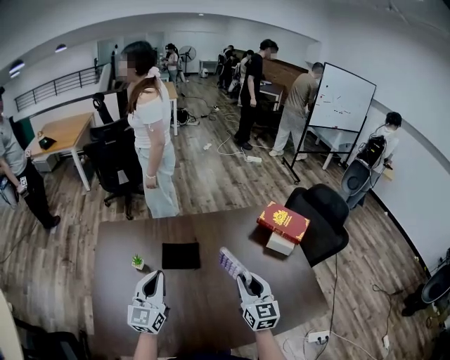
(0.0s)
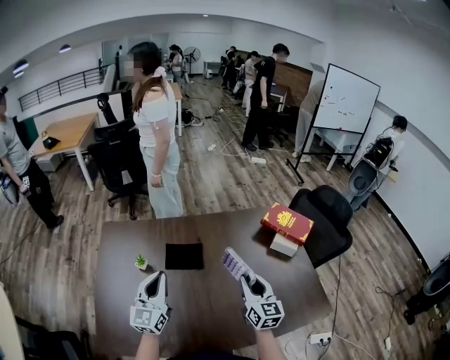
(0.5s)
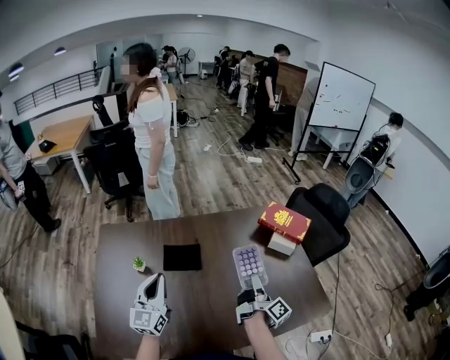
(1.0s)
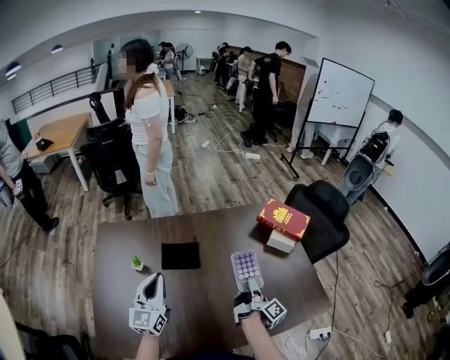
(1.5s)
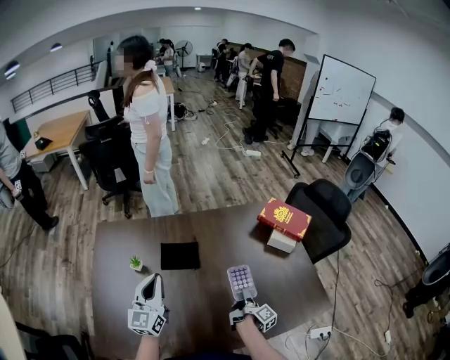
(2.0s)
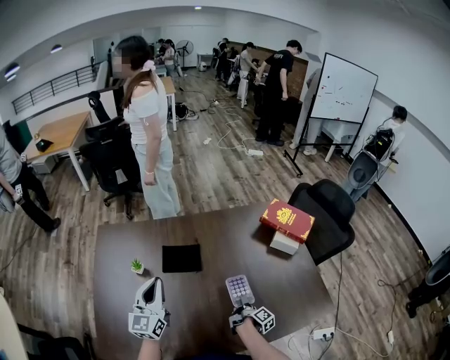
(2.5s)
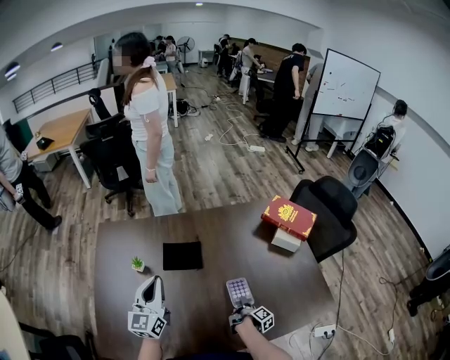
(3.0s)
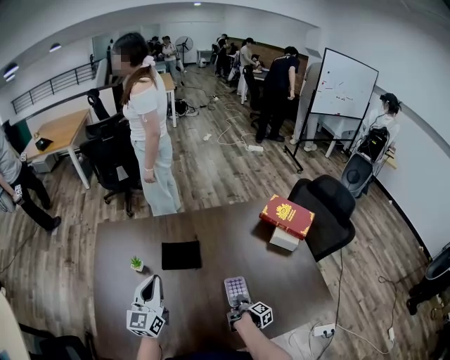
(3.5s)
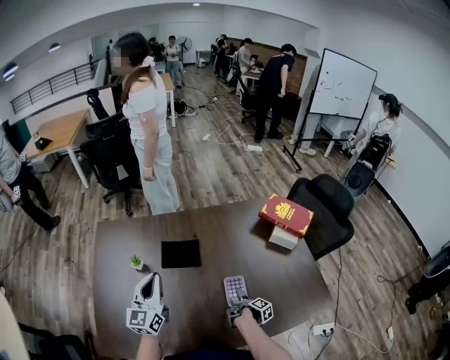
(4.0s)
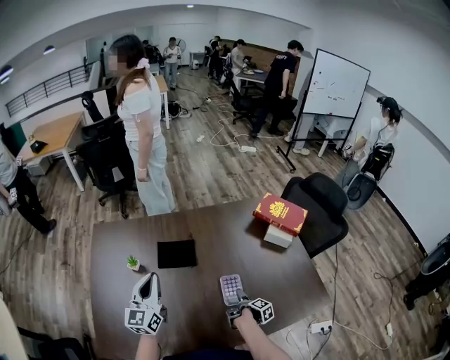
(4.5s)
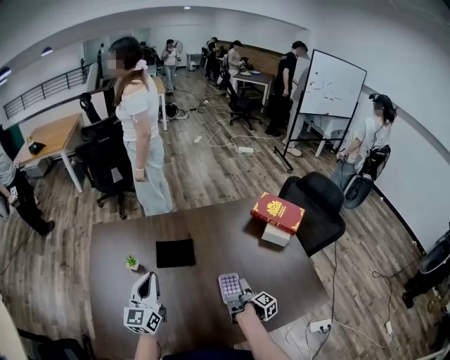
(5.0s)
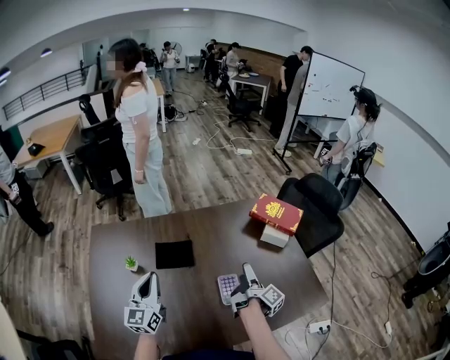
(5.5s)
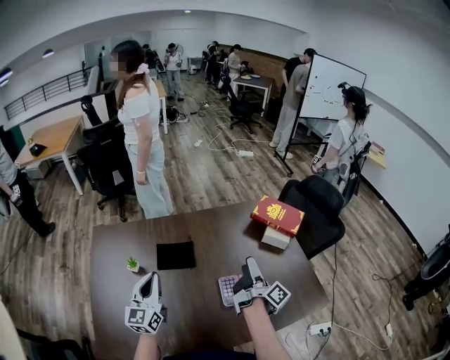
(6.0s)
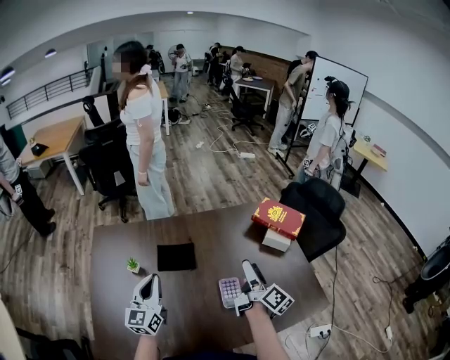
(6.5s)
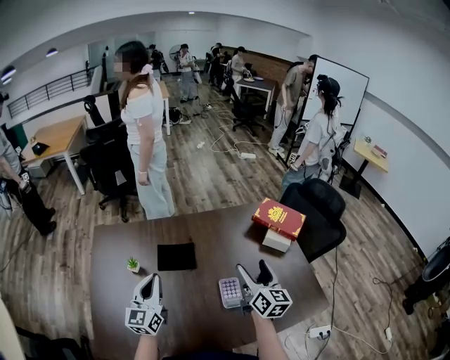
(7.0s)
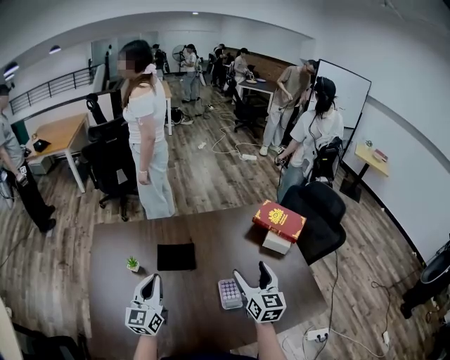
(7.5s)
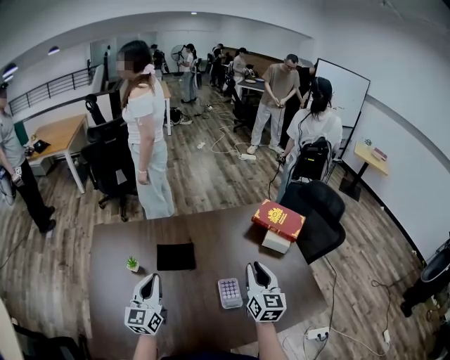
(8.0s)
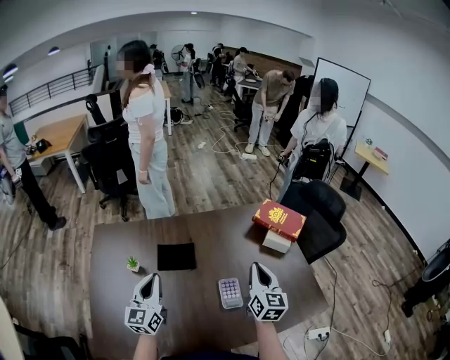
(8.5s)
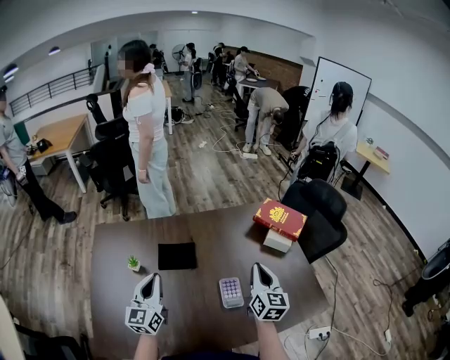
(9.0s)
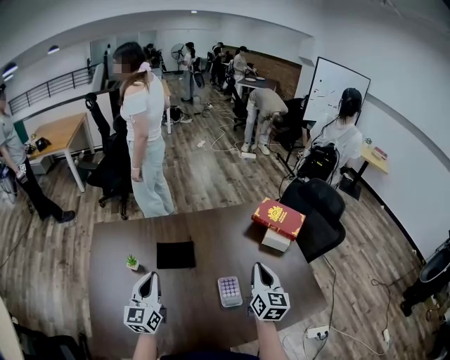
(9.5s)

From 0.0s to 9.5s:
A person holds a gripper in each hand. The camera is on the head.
From 0.0s to 2.0s: The right gripper is displaced downward by roughly 25 cm, and rolls clockwise, seen from behind, by about 90 degrees.
From 2.0s to 4.0s: The right gripper travels downward by approximately 10 cm, turns by some 30 degrees, and opens.
From 4.0s to 5.5s: The right gripper goes some 25 cm upward, and angles its fingers upward, by roughly 30 degrees.
From 5.5s to 7.5s: The right gripper travels upward by some 10 cm, and rotates around the line of its fingers by about 80 degrees, counterclockwise from behind.
From 7.5s to 9.5s: The right gripper closes up.

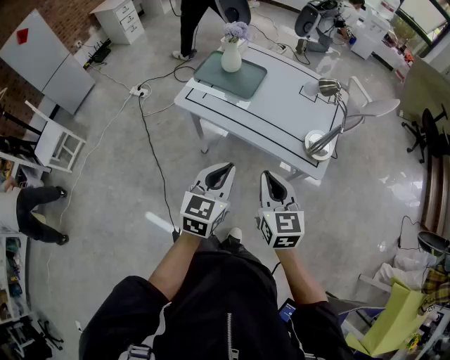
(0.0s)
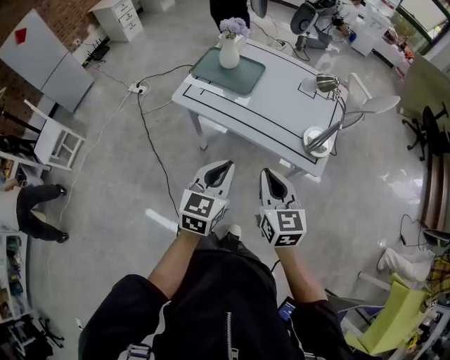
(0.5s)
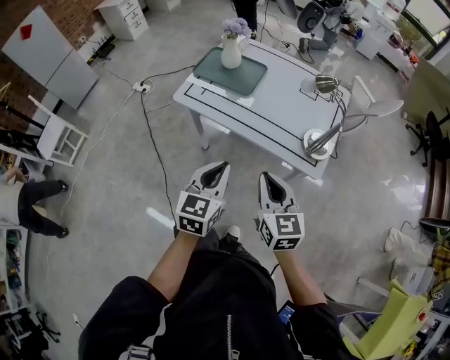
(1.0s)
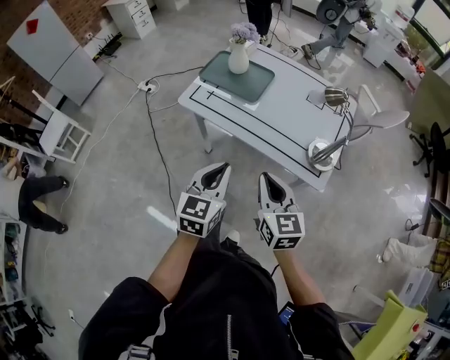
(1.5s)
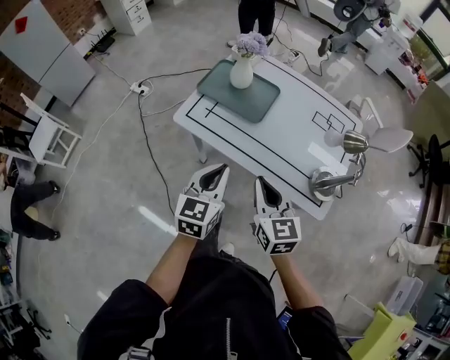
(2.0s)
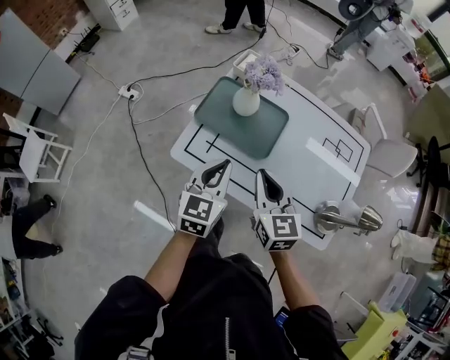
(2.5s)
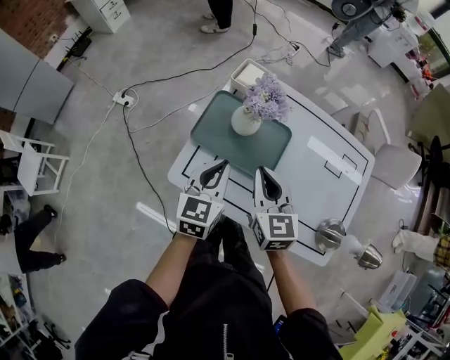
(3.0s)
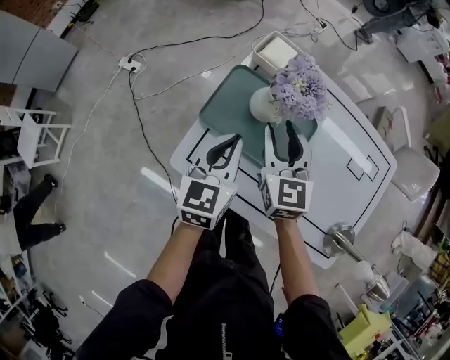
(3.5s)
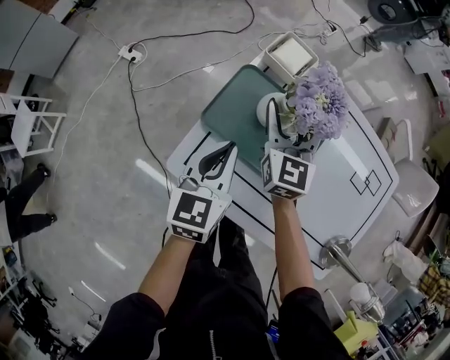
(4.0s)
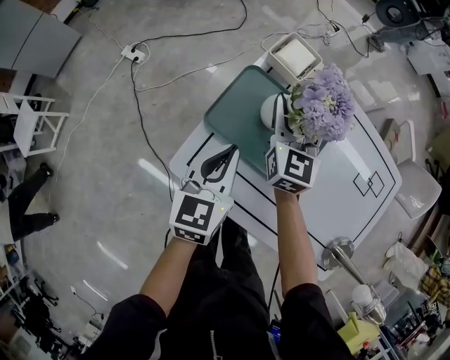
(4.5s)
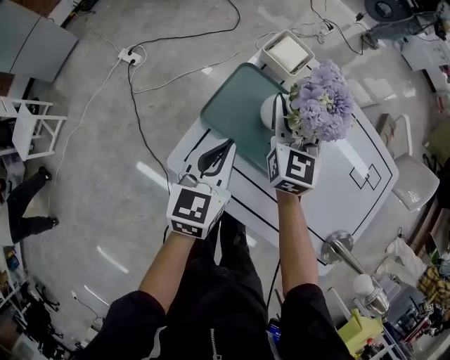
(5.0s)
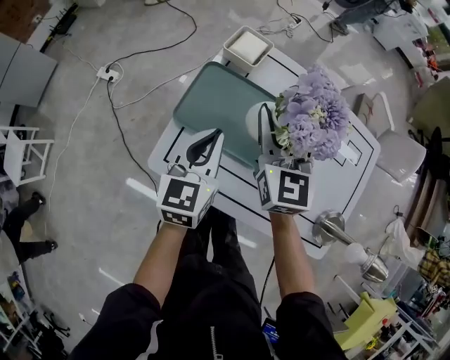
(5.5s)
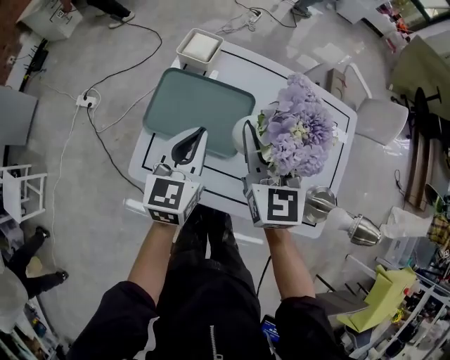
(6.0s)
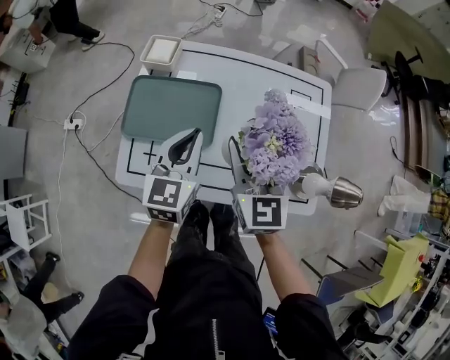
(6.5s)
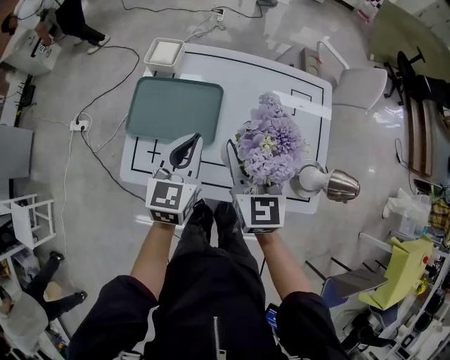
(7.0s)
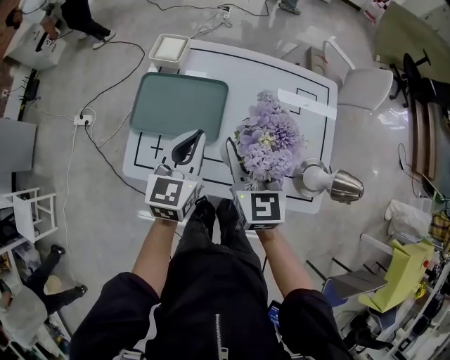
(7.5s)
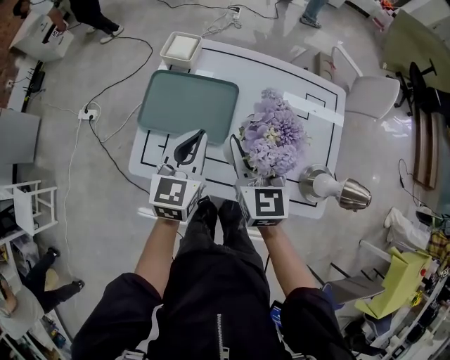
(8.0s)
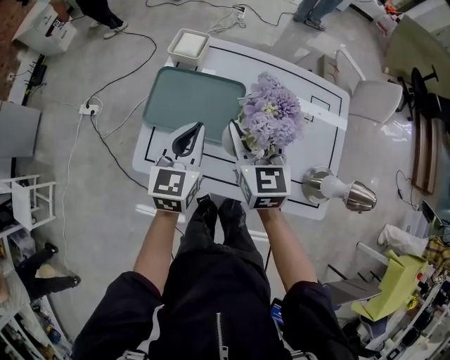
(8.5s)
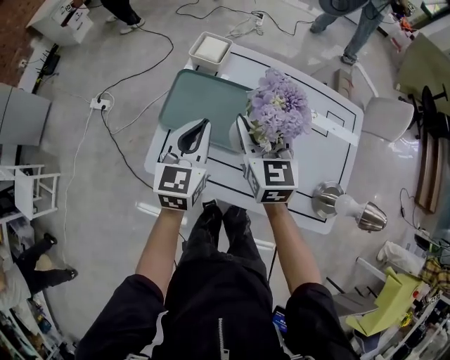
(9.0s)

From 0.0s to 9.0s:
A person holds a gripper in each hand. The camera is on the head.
From 0.0s to 2.0s: The grippers both shift forward by about 15 cm.
From 2.0s to 4.5s: The two grippers go some 40 cm forward. The right gripper opens its fingers.
From 4.5s to 7.0s: The left gripper shifts about 20 cm to the right and upward, and swivels roughly 20 degrees. The right gripper travels to the right, backward and upward by approximately 35 cm.
From 7.0s to 9.0s: The left gripper is displaced to the left by roughly 10 cm. Meanwhile the right gripper goes approximately 15 cm to the left and forward.

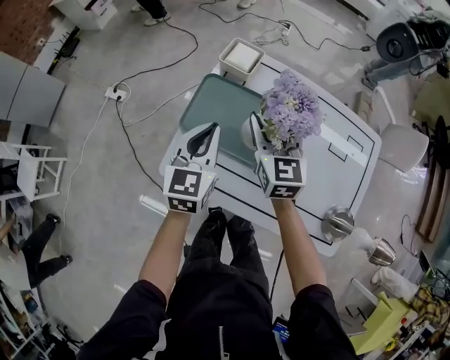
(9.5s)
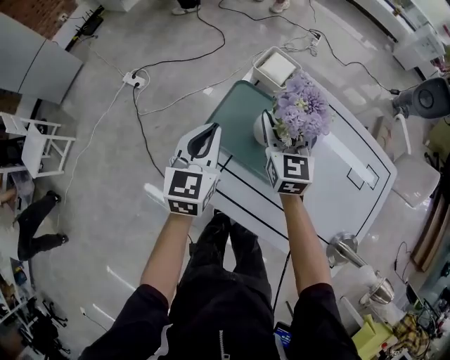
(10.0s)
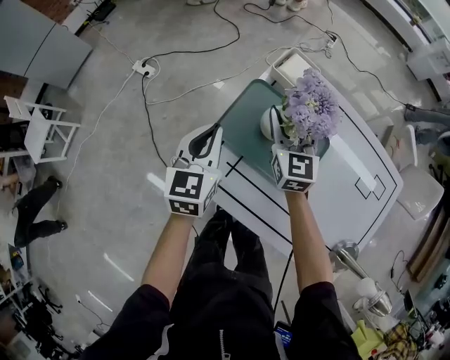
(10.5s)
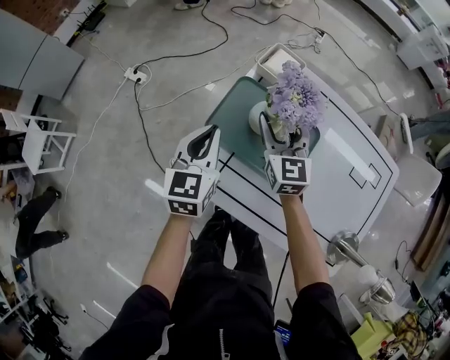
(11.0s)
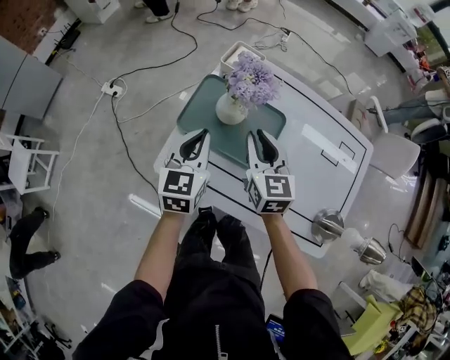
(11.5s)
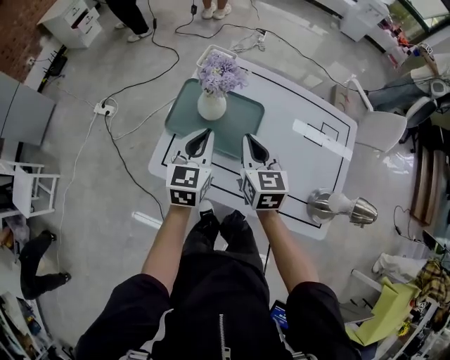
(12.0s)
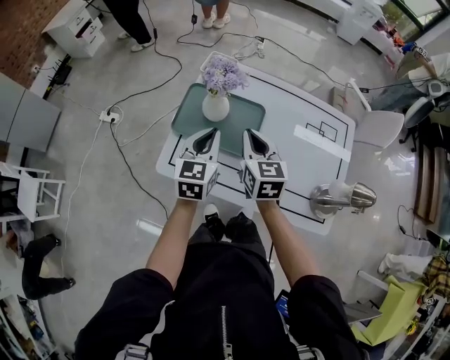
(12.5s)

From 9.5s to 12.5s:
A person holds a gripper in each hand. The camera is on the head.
From 9.5s to 11.0s: The right gripper travels to the left, downward and forward by roughly 10 cm. The left gripper is displaced to the left by some 10 cm.
From 11.0s to 12.5s: The right gripper goes approximately 20 cm backward, to the right and upward, and closes; the left gripper heads to the right and backward, covering approximately 15 cm.

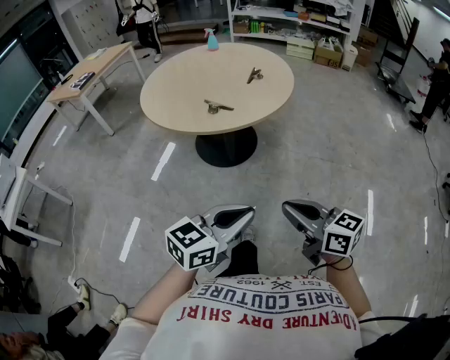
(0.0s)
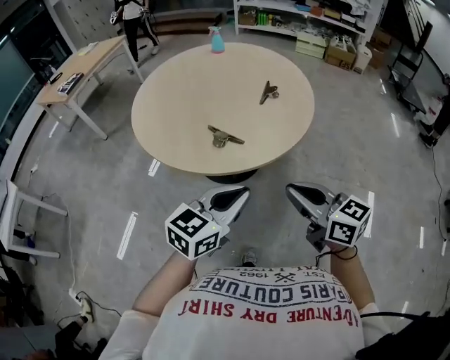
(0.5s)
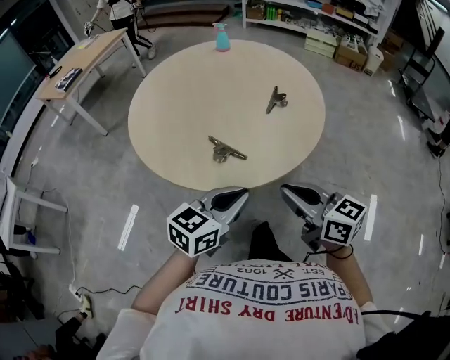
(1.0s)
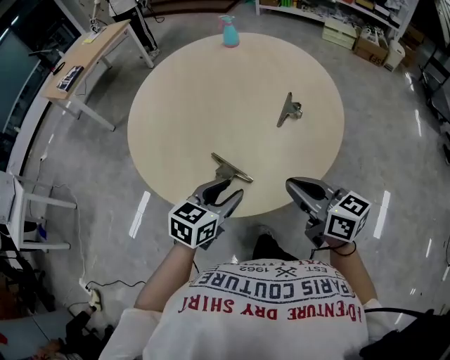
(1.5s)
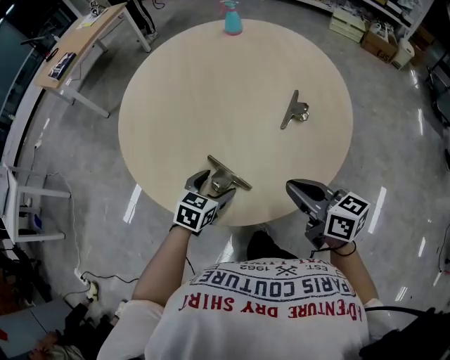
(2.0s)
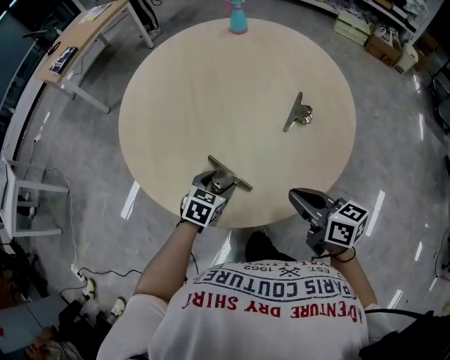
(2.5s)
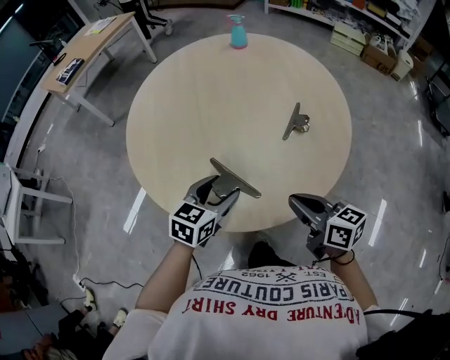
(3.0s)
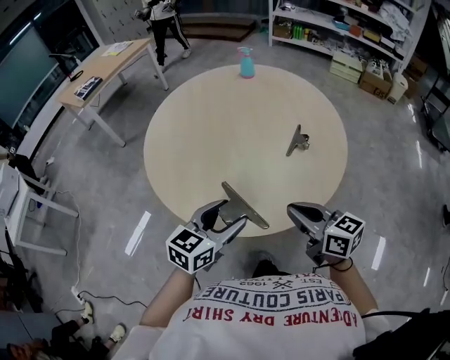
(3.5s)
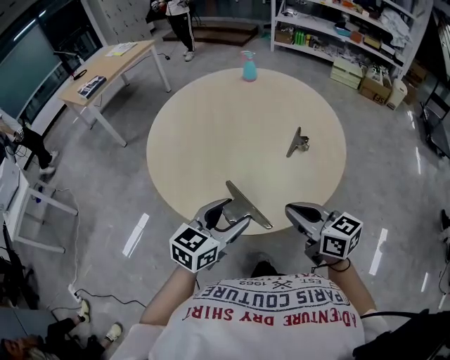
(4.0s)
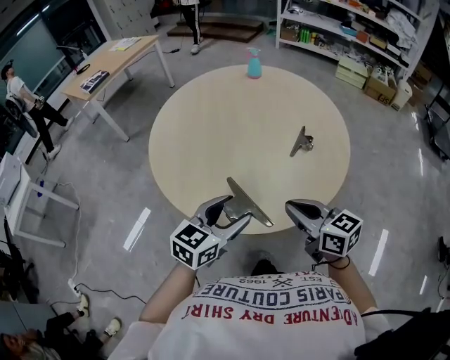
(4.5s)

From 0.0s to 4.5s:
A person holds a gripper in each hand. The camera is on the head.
From 0.0s to 2.0s: The pair of grippers is taken forward, about 60 cm. The left gripper points its fingers about 30 degrees further downward, and opens up.
From 2.0s to 4.5s: The left gripper moves upward and backward, about 20 cm, and swivels roughly 20 degrees, while the right gripper shifts roughly 10 cm upward and backward.
